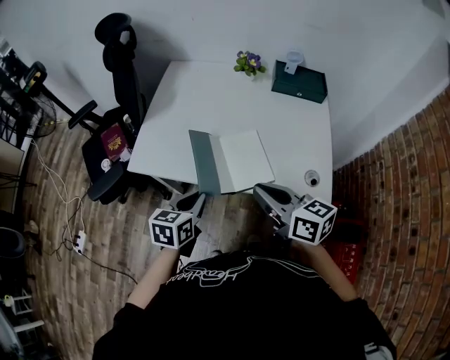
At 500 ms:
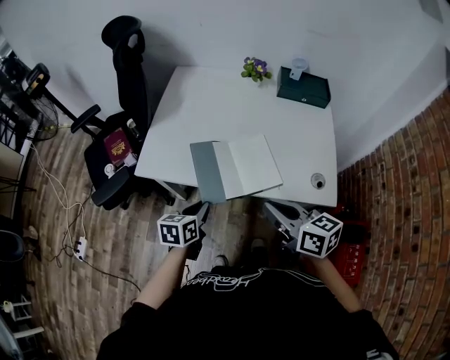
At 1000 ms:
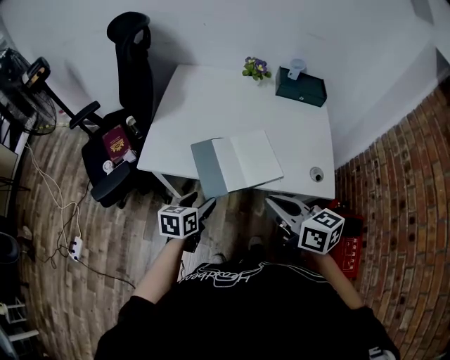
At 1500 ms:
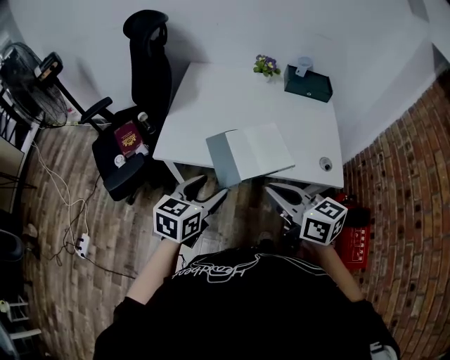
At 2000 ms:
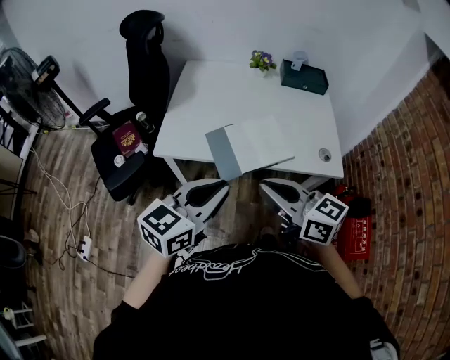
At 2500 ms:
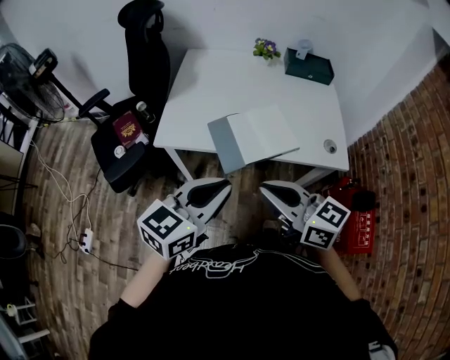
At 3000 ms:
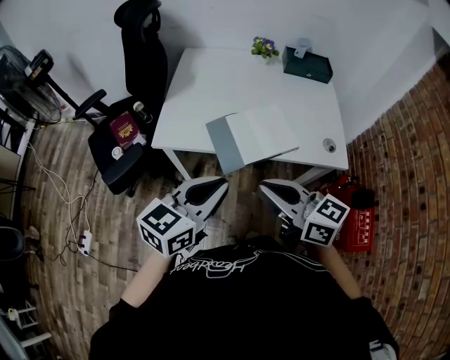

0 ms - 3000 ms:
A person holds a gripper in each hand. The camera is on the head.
0 ms - 1500 ms: The left gripper moves upward and to the left, about 10 cm, and opens up; the right gripper moves to the left and backward, about 10 cm.
1500 ms - 3000 ms: The right gripper moves about 5 cm, while the left gripper goes some 10 cm upward and backward, and closes its fingers.

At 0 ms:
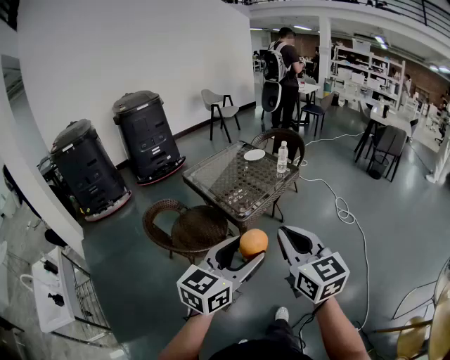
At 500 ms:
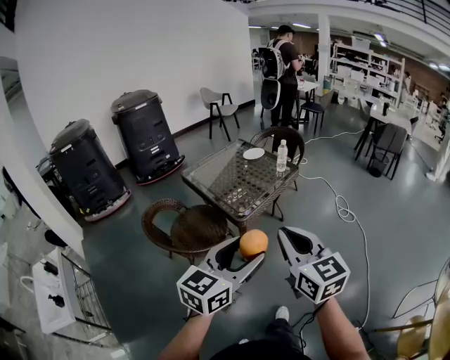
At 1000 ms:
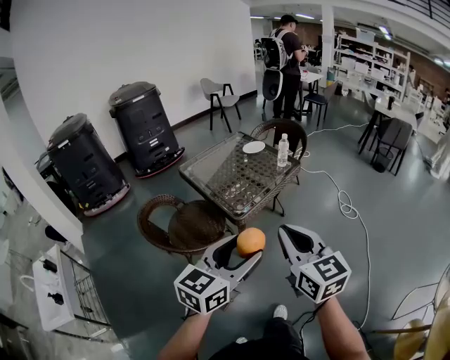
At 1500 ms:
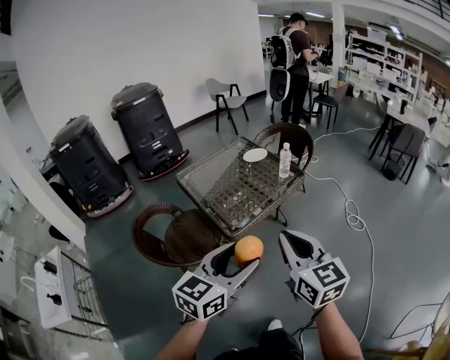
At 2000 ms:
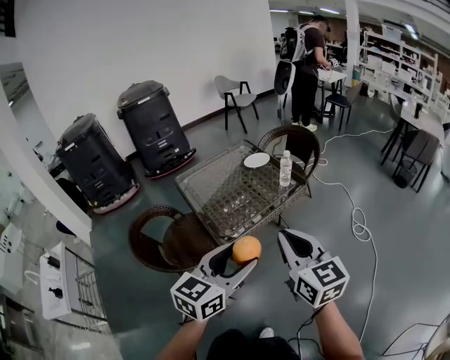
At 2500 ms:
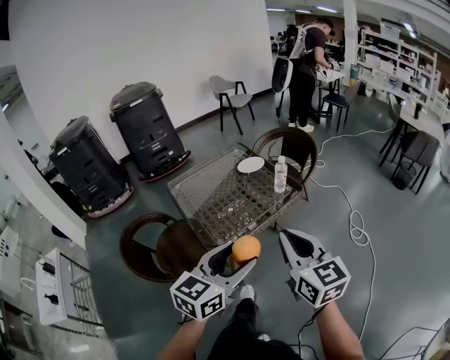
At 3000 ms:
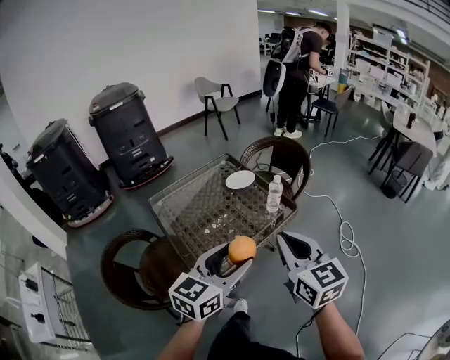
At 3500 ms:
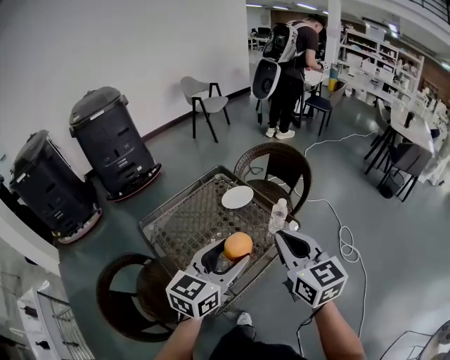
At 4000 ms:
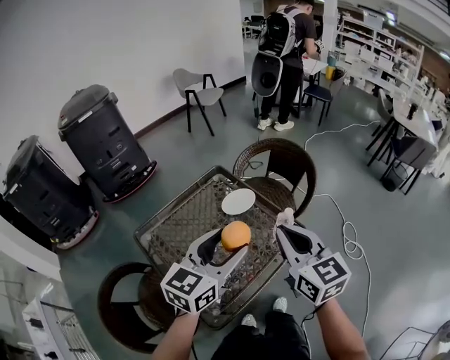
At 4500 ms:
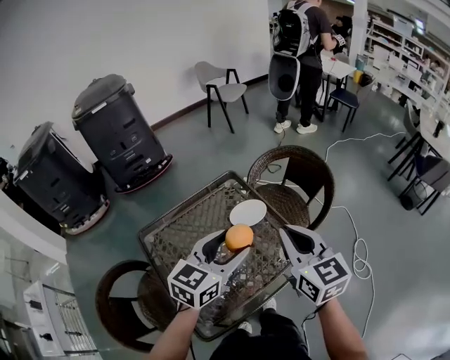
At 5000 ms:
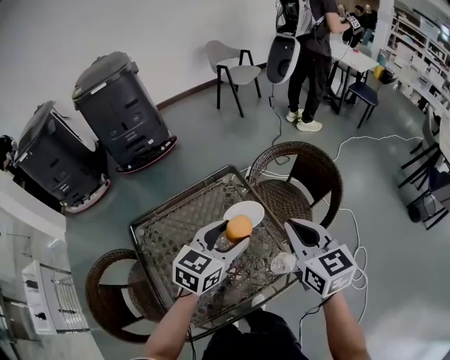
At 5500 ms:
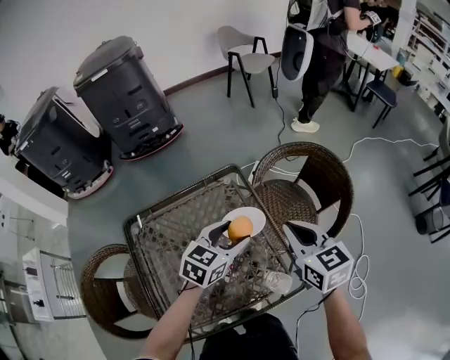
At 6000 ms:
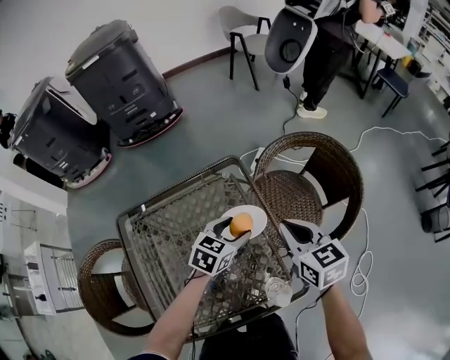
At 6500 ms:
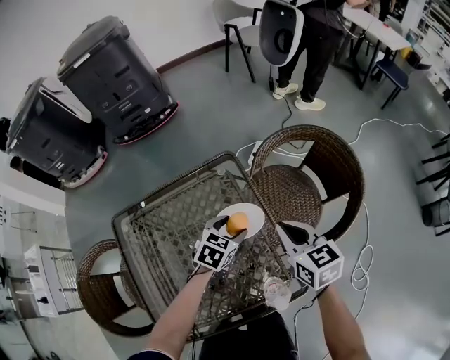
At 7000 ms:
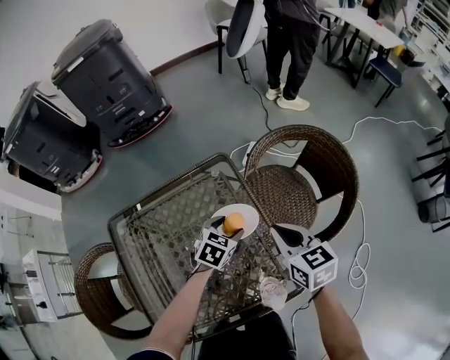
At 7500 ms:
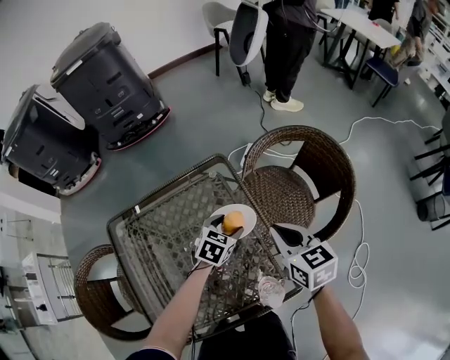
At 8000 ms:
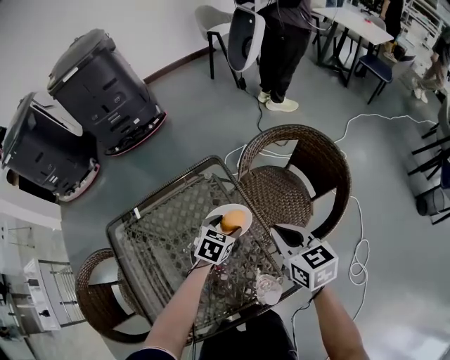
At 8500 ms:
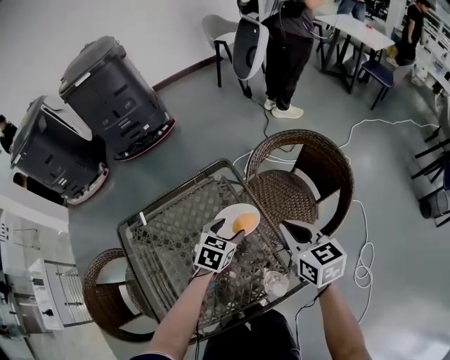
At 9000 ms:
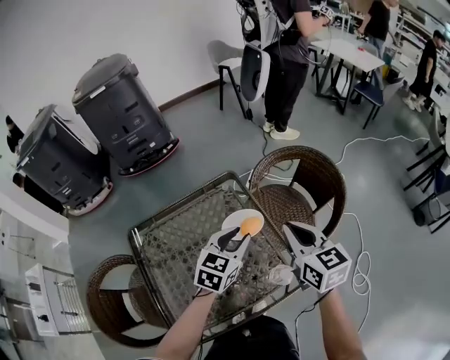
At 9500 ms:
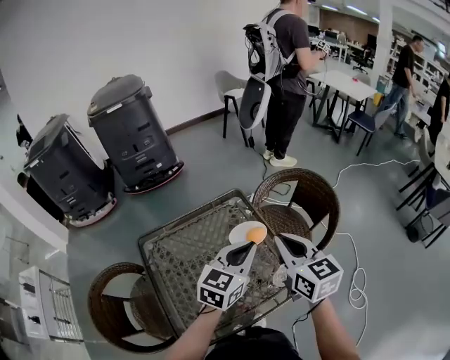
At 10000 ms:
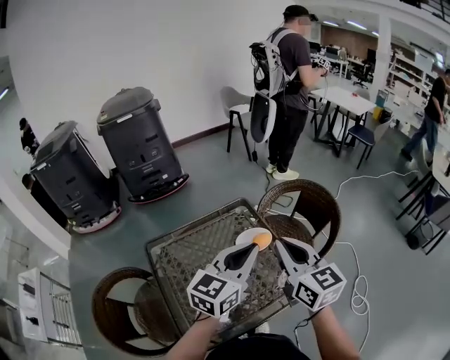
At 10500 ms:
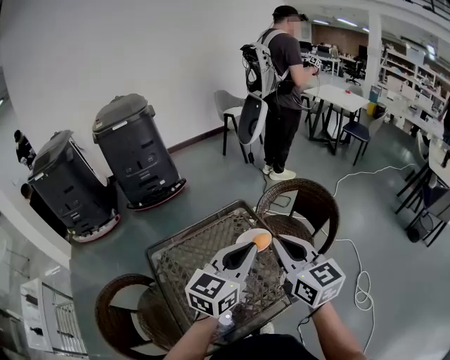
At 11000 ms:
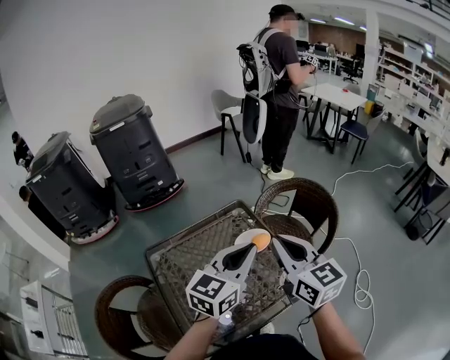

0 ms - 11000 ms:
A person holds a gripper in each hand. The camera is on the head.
0 ms - 2000 ms: The grippers both shift forward and to the right by approximately 25 cm.
2000 ms - 3500 ms: Both grippers travel together forward, about 30 cm.
3500 ms - 5500 ms: The grippers both shift forward and downward by roughly 35 cm. The right gripper turns by roughly 30 degrees. Meanwhile the left gripper changes its angle by about 20 degrees.
5500 ms - 7500 ms: The right gripper heads downward, covering about 10 cm, while the left gripper is displaced downward by about 15 cm, and changes its angle by about 20 degrees.
7500 ms - 9000 ms: The right gripper heads upward and backward, covering approximately 15 cm. The left gripper heads upward and backward, covering about 20 cm, changes its angle by some 20 degrees, and closes its fingers.
9000 ms - 11000 ms: The left gripper goes roughly 20 cm upward and backward, turns by approximately 20 degrees, and closes up; the right gripper is displaced upward, backward and to the left by some 20 cm.

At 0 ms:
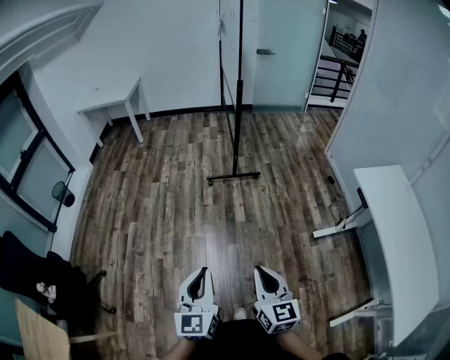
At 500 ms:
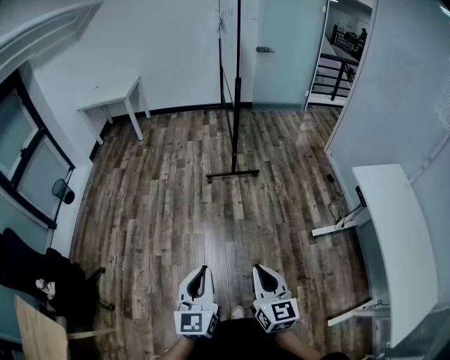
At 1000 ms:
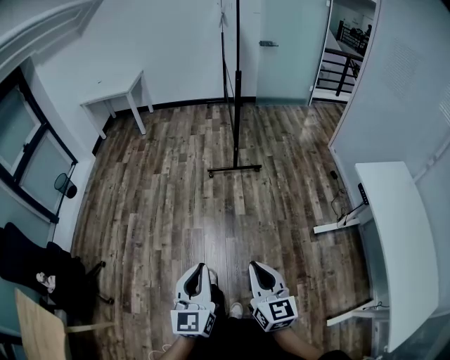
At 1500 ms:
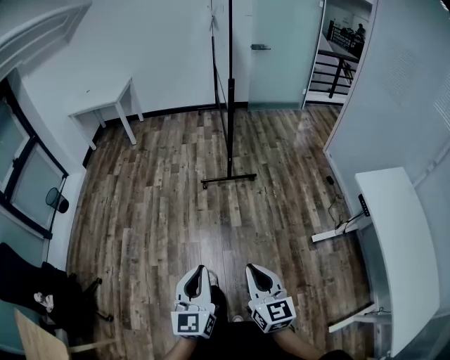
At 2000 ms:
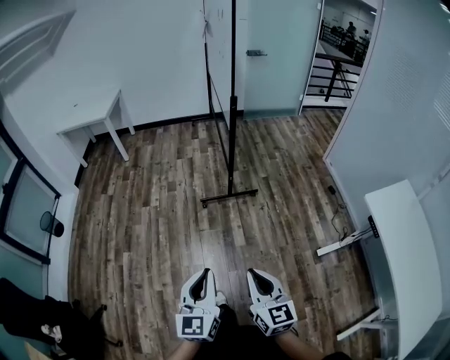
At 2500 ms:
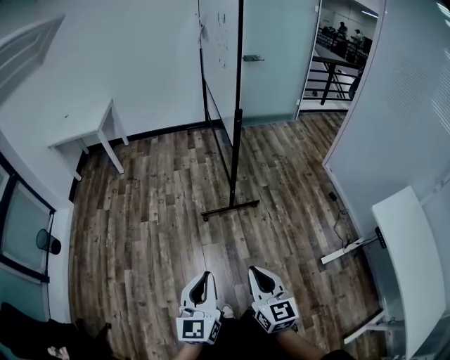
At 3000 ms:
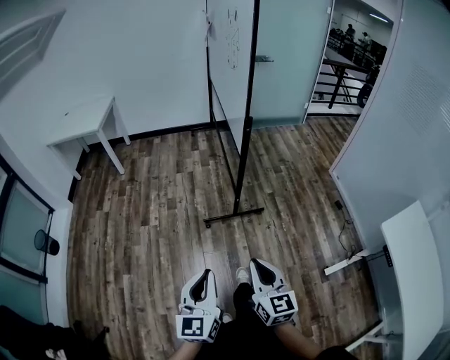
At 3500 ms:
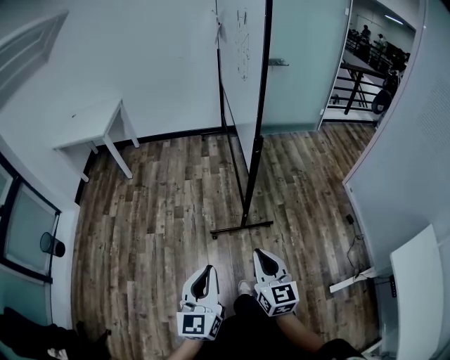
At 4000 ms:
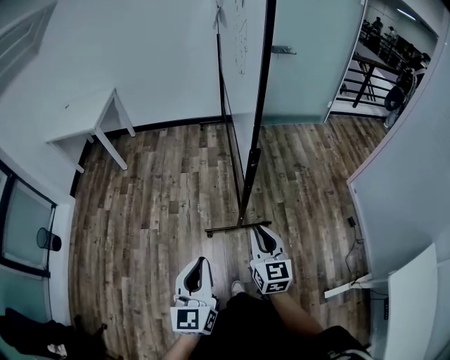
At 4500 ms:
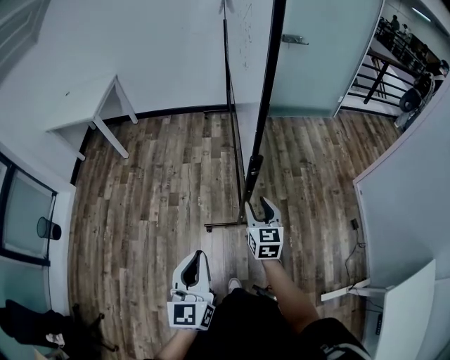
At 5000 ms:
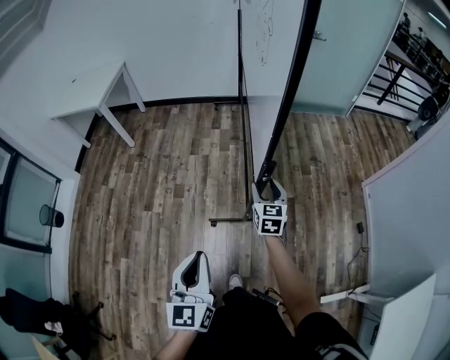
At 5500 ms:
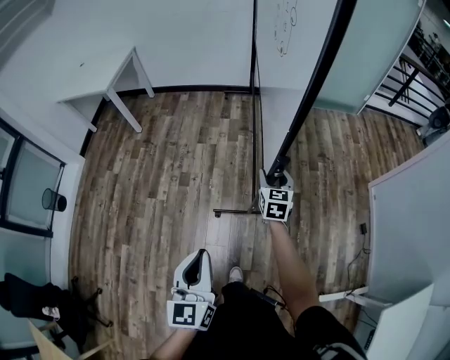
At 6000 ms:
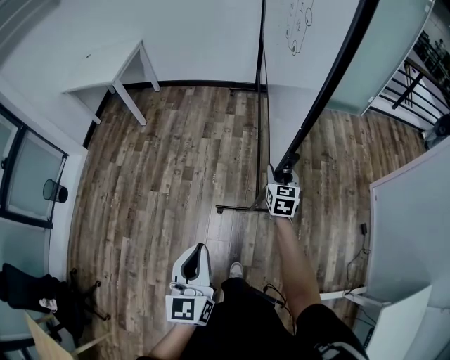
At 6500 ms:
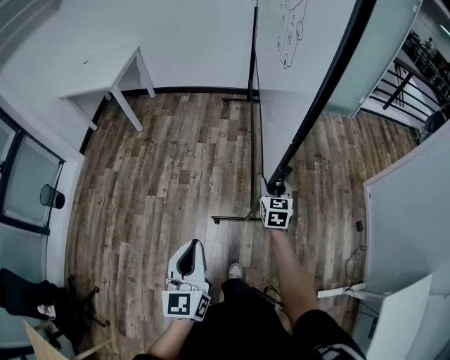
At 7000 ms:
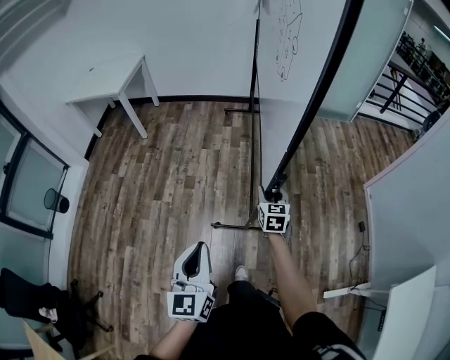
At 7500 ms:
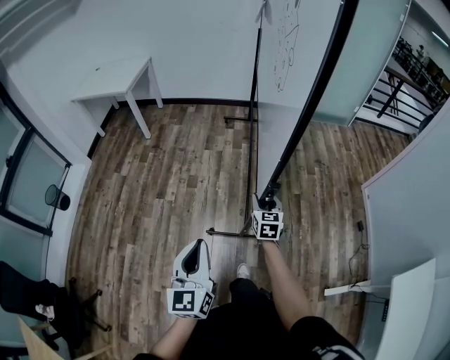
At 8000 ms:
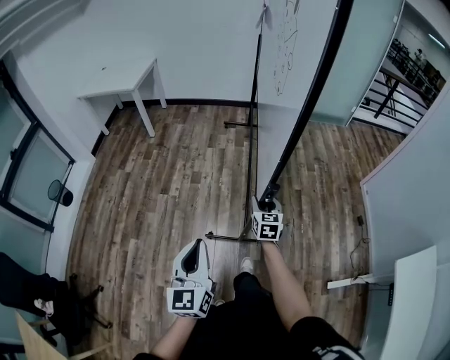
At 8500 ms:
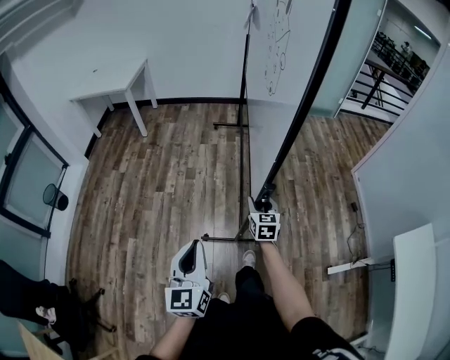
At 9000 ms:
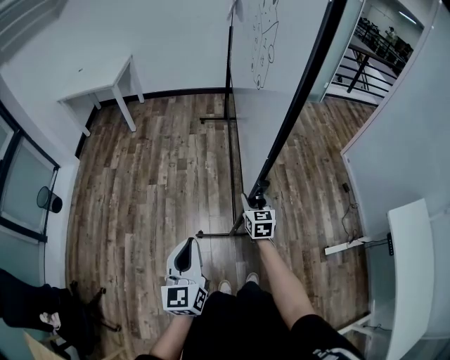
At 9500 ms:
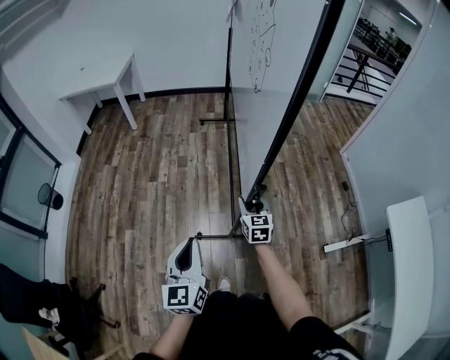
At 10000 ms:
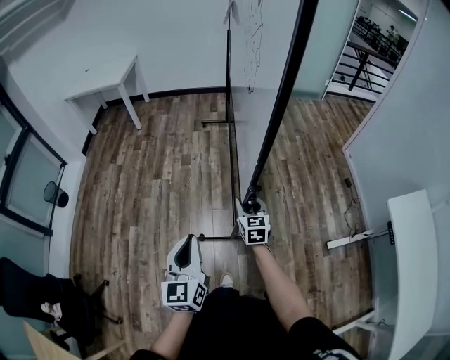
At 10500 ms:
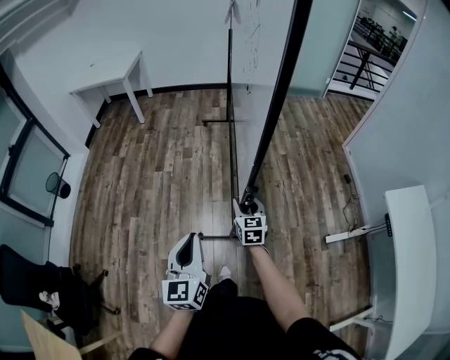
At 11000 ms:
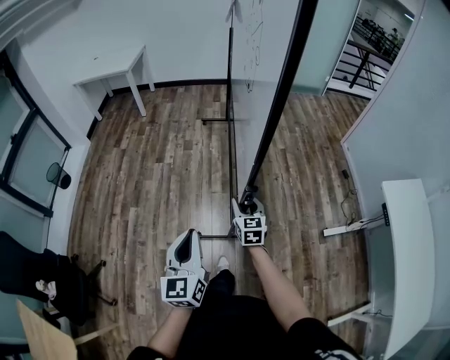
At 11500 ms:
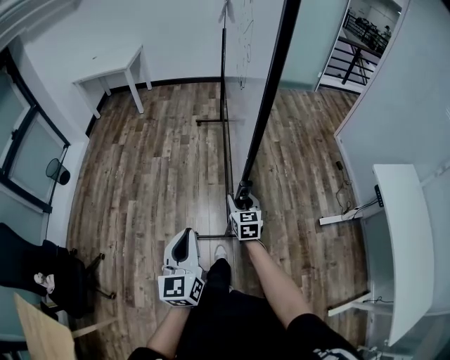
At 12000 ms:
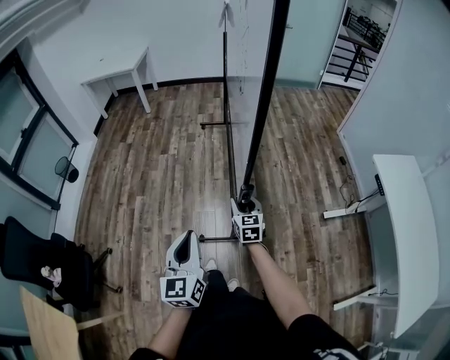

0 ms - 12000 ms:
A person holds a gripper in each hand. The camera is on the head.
0 ms - 2000 ms: Both grippers travel together forward, about 25 cm.
2000 ms - 4000 ms: The two grippers travel together, forward, some 50 cm.
4000 ms - 6000 ms: The left gripper shifts some 10 cm forward. The right gripper goes roughly 30 cm forward and downward, and opens.
6000 ms - 8000 ms: Both grippers move backward and to the left, approximately 30 cm.
8000 ms - 10000 ms: The grippers both shift backward by about 20 cm.
10000 ms - 12000 ms: Both grippers travel together backward, about 30 cm.

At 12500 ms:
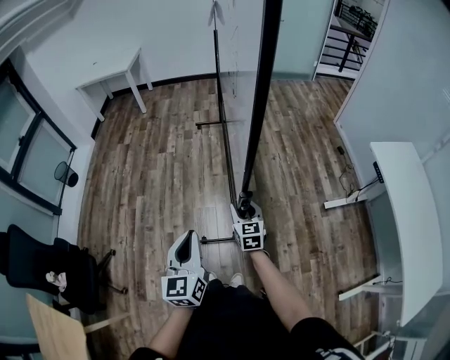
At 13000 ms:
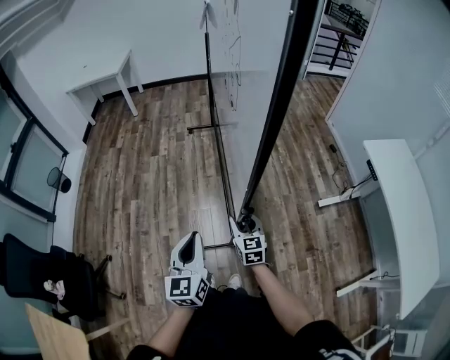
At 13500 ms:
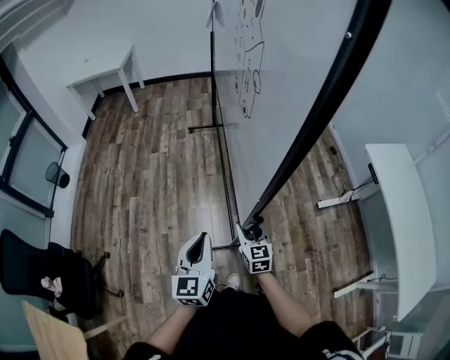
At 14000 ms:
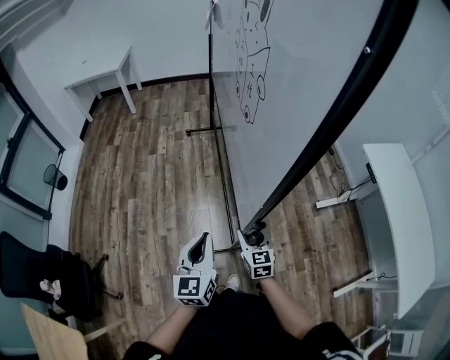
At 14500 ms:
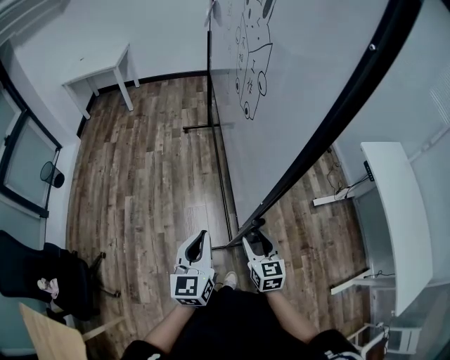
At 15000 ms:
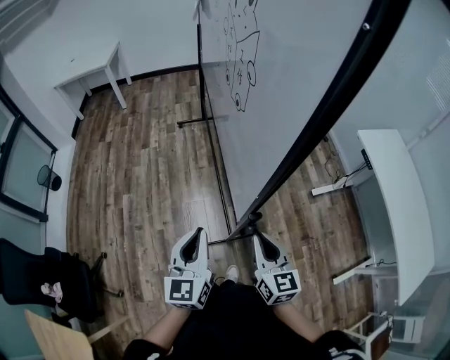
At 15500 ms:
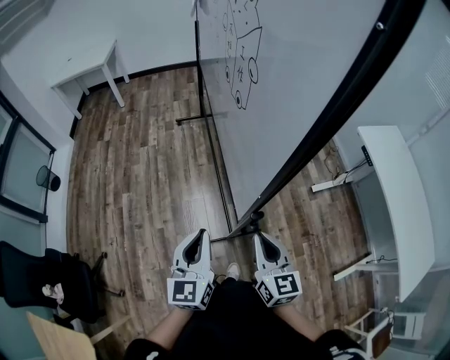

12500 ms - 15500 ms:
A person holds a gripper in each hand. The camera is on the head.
12500 ms - 14000 ms: The right gripper travels backward by approximately 10 cm.
14000 ms - 15500 ms: The right gripper moves upward and backward, approximately 15 cm, and closes.
